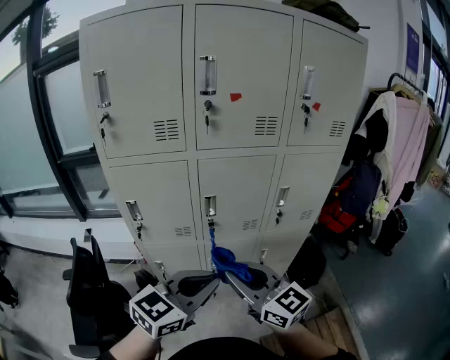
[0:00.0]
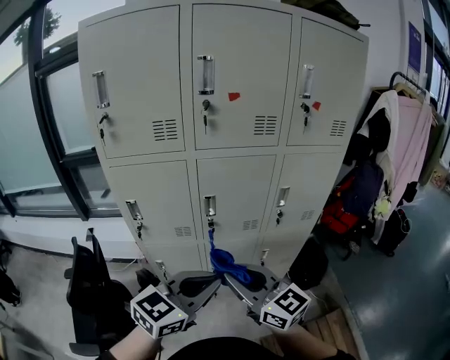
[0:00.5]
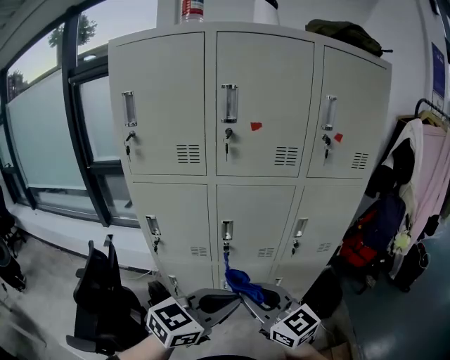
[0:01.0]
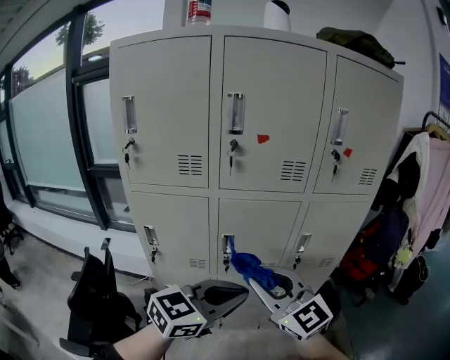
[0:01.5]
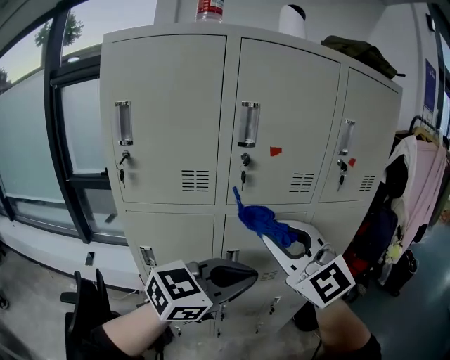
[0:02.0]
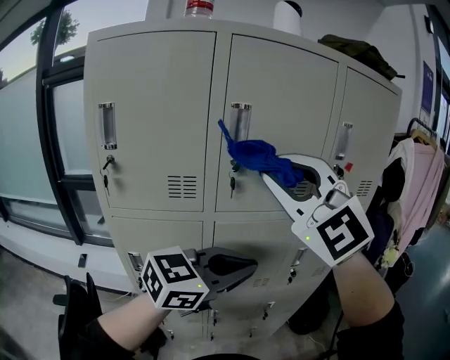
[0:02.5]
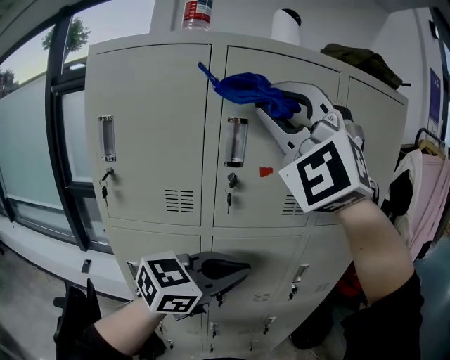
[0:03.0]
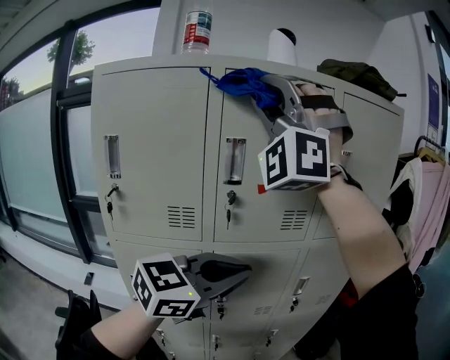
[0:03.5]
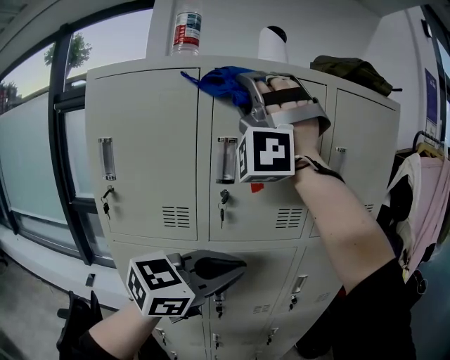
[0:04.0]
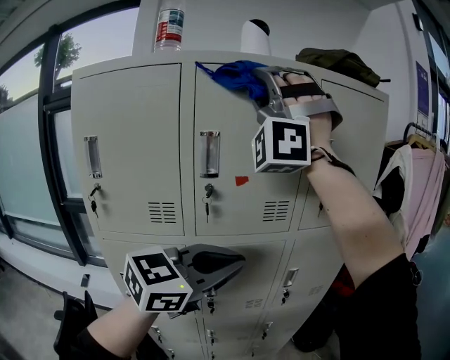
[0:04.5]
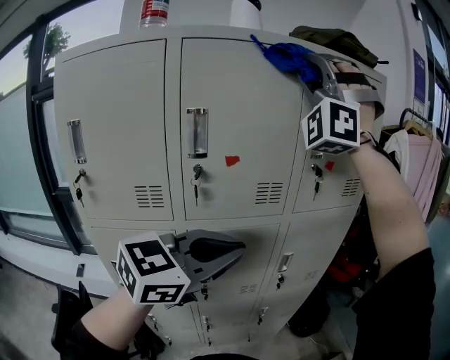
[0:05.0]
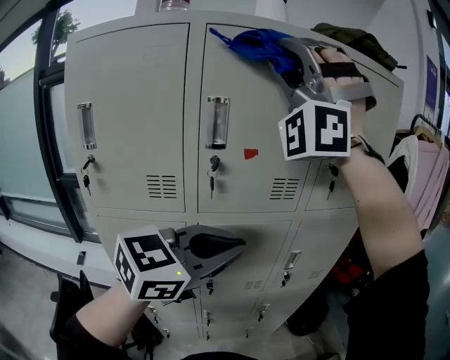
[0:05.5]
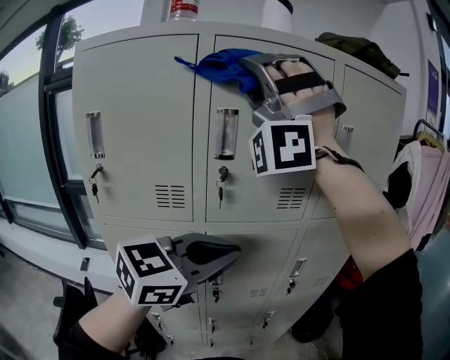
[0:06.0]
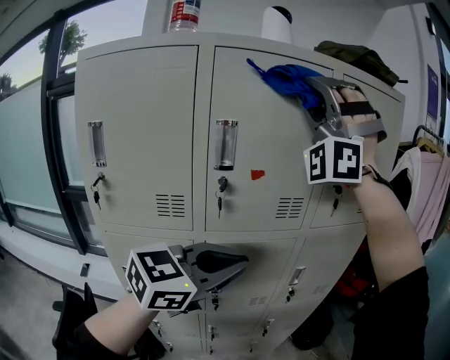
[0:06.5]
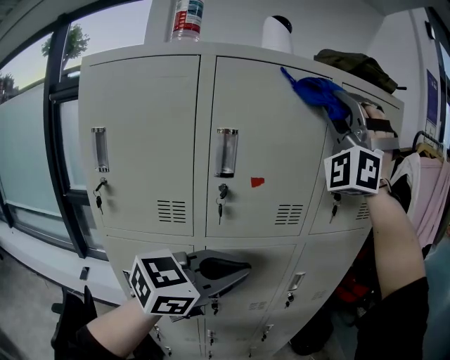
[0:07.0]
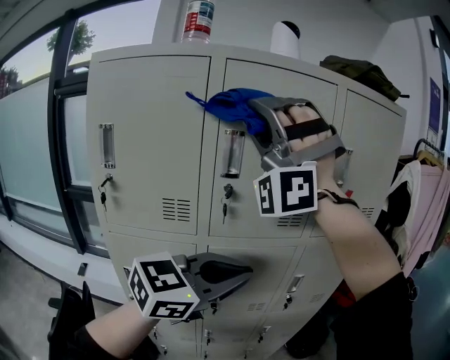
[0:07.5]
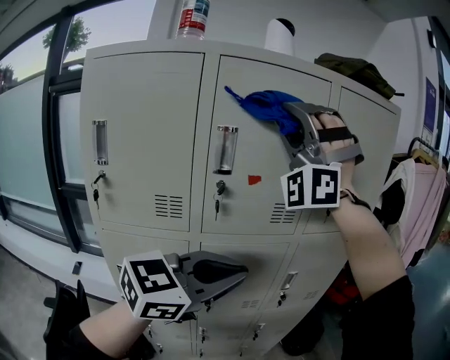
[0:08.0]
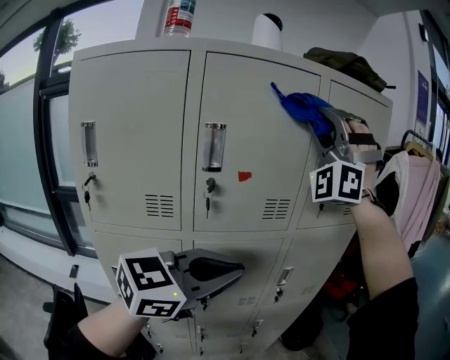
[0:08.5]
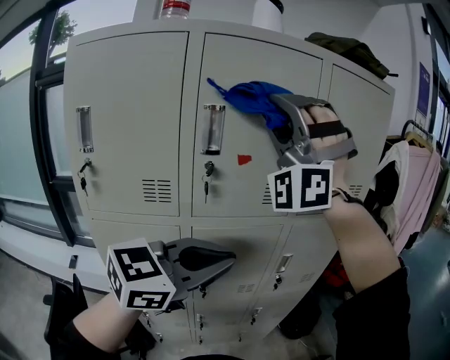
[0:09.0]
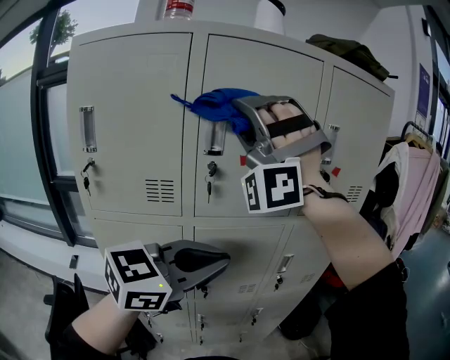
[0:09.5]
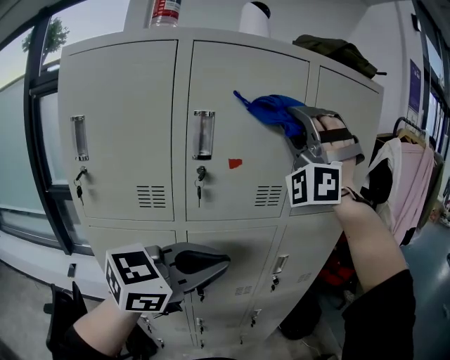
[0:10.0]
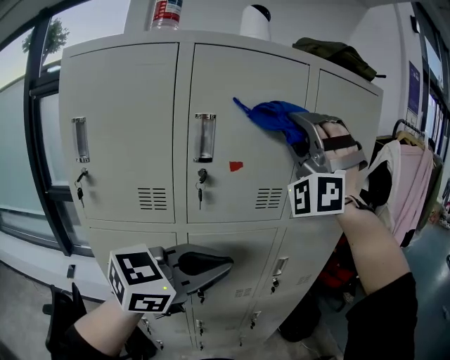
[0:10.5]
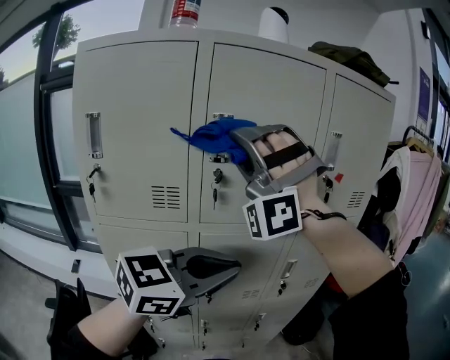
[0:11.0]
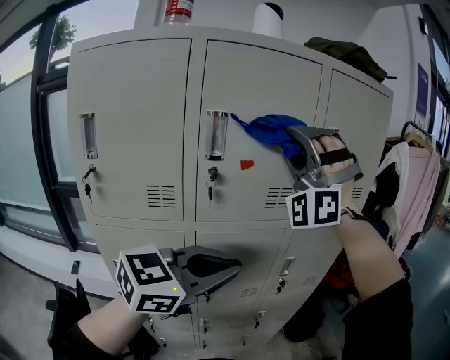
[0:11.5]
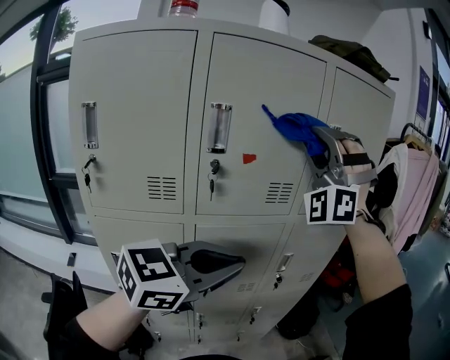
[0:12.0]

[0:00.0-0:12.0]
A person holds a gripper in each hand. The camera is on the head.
0:00.0 to 0:02.0: The left gripper travels upward by about 10 cm.
0:02.0 to 0:04.0: The left gripper is displaced upward by about 10 cm.

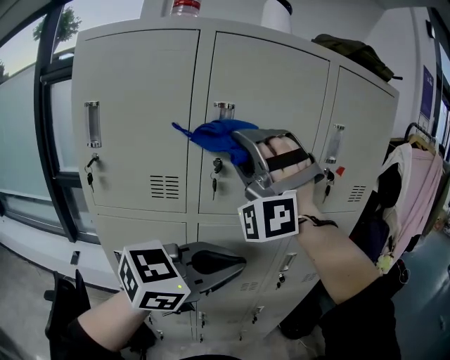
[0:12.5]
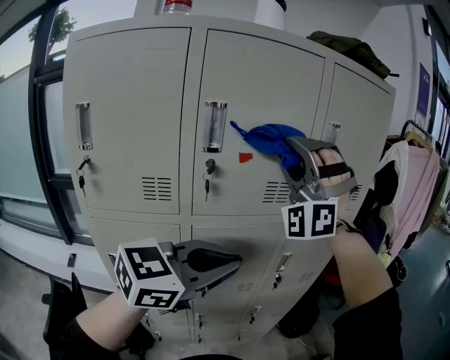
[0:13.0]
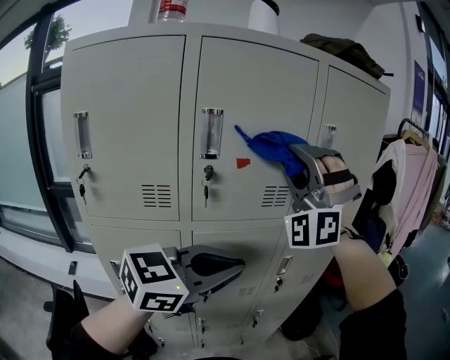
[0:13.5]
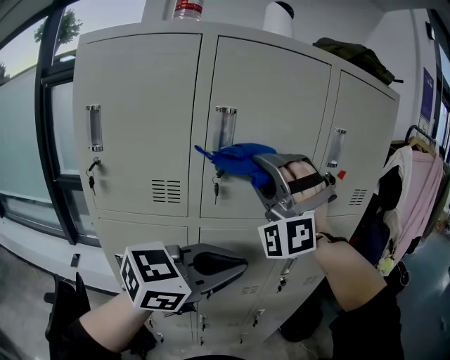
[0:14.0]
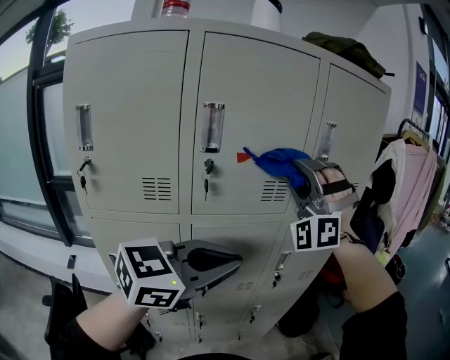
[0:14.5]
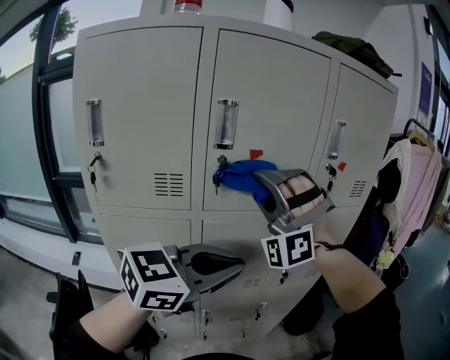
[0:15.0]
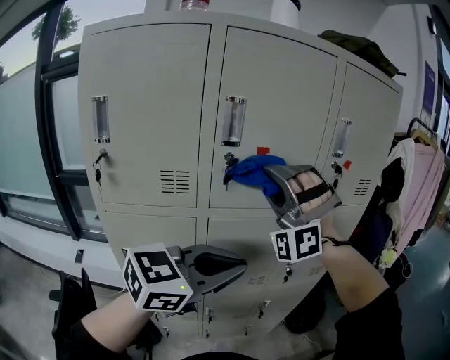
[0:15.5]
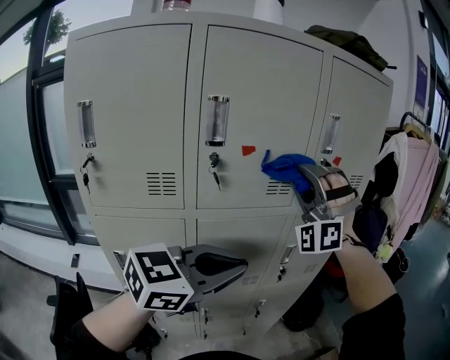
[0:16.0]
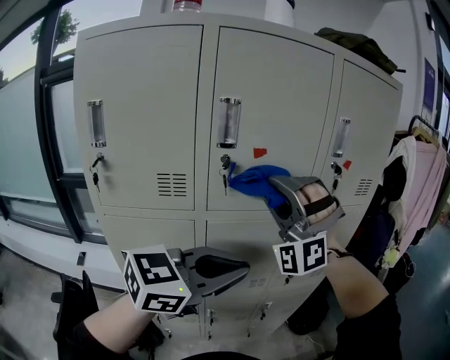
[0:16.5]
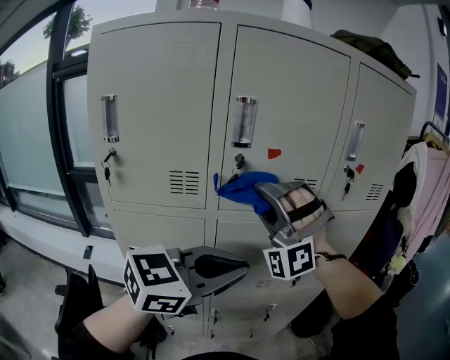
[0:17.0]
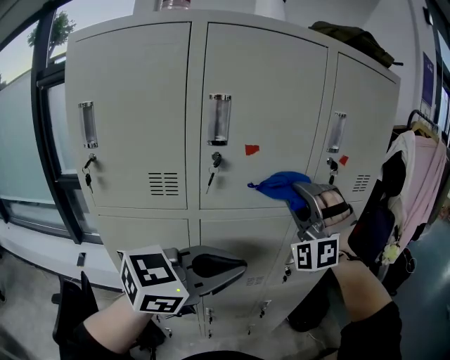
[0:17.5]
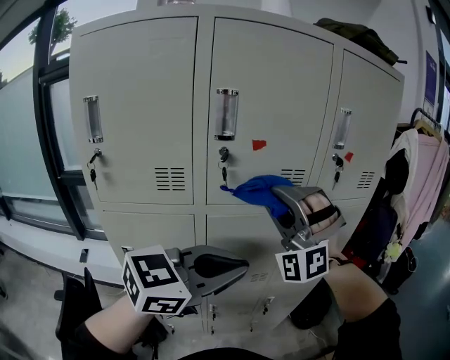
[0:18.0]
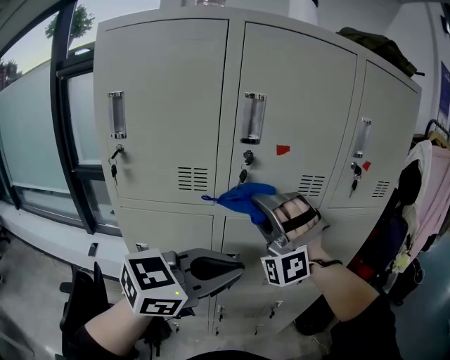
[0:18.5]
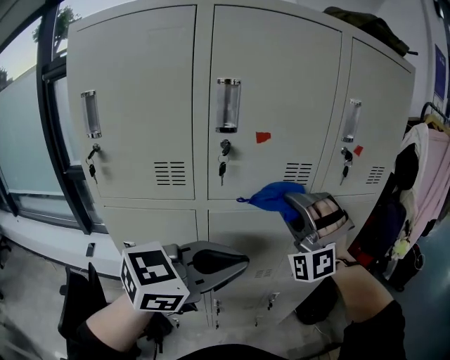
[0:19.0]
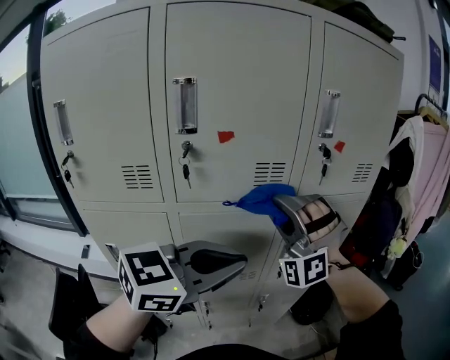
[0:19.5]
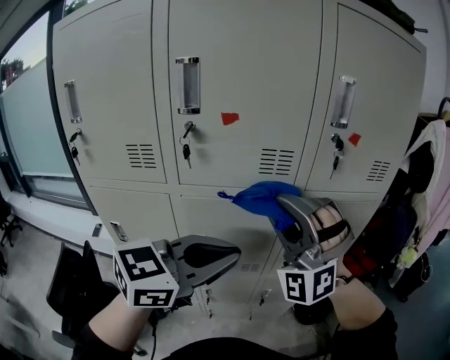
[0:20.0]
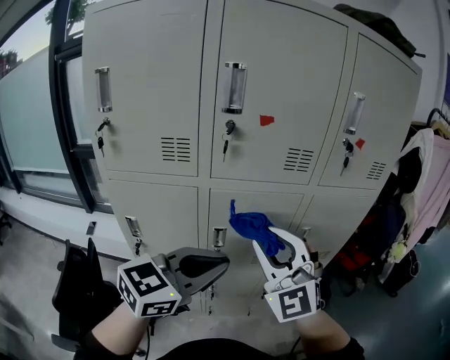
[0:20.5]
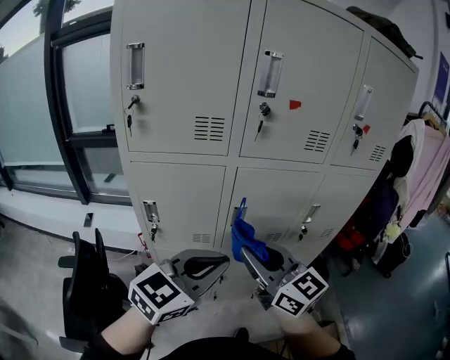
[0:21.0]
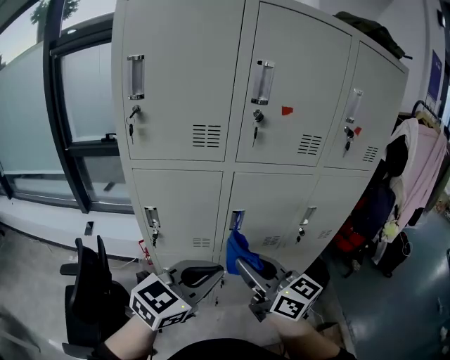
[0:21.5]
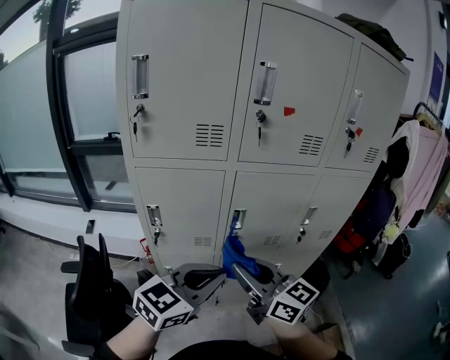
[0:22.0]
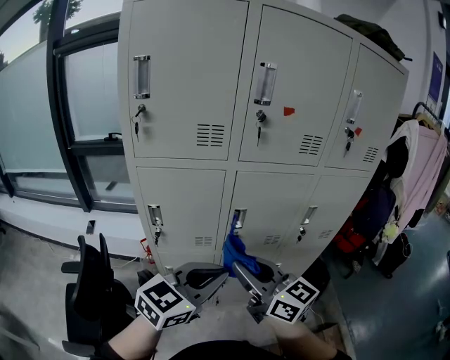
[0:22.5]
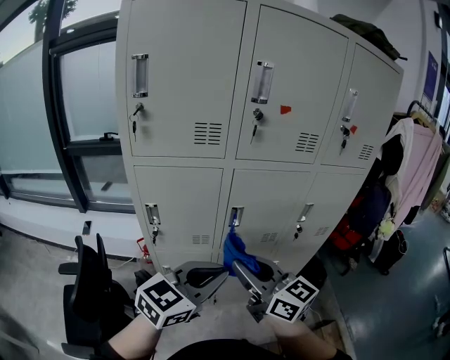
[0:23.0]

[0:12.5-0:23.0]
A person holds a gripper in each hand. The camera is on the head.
0:19.0 to 0:21.0: The left gripper ends up some 15 cm from where it was.

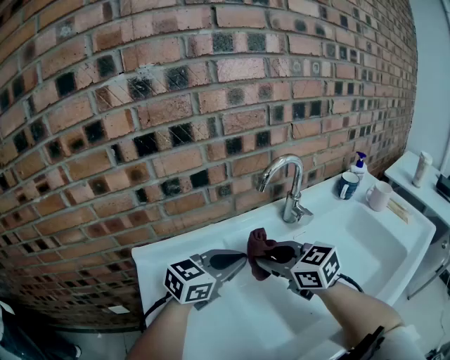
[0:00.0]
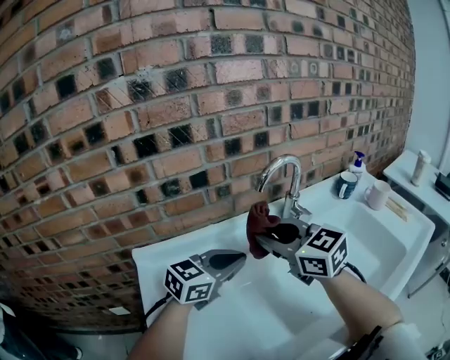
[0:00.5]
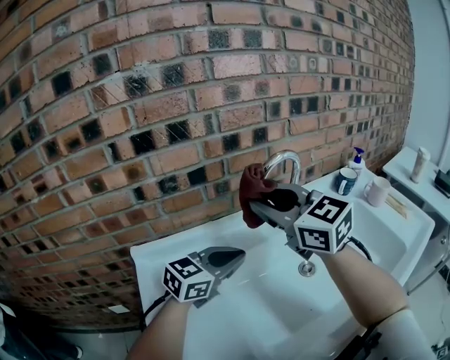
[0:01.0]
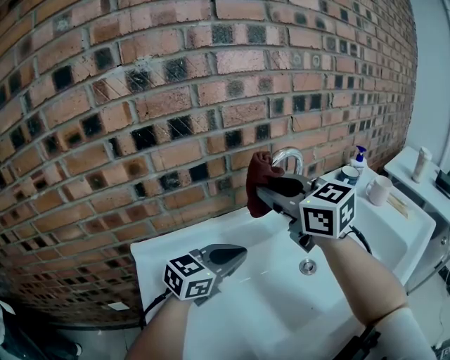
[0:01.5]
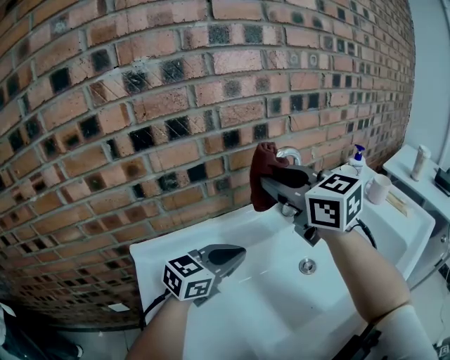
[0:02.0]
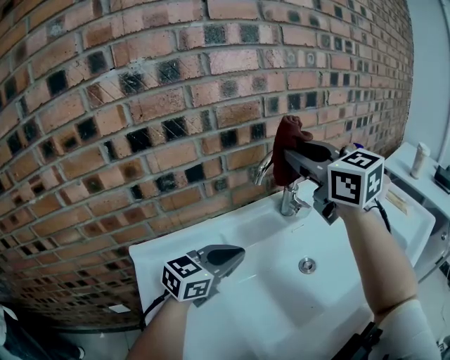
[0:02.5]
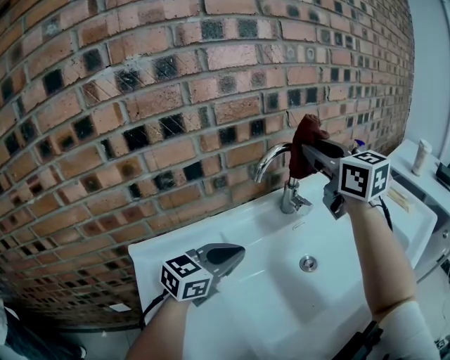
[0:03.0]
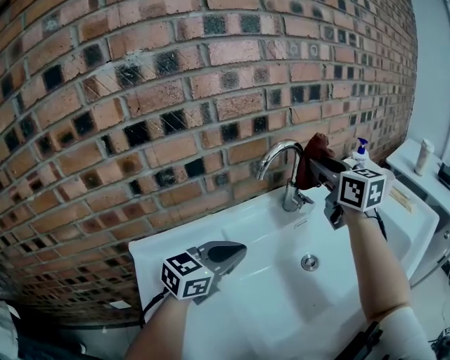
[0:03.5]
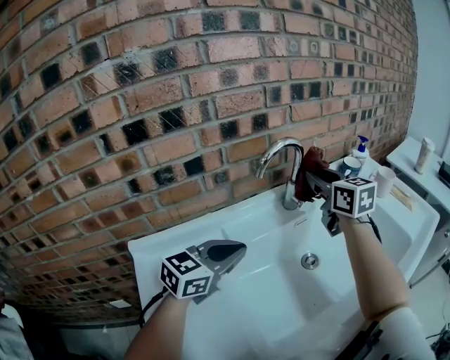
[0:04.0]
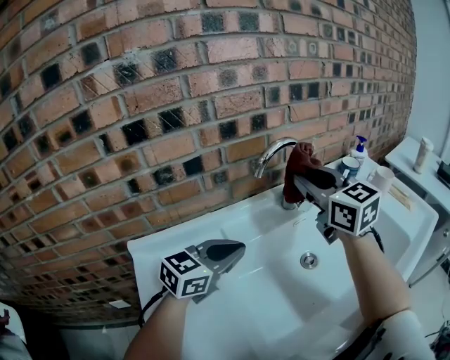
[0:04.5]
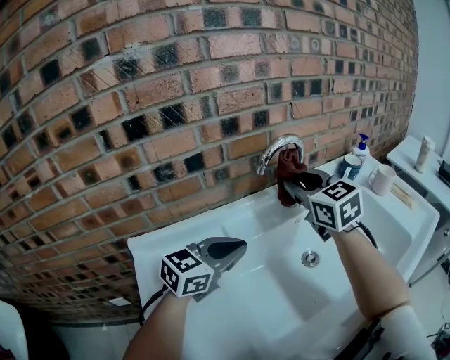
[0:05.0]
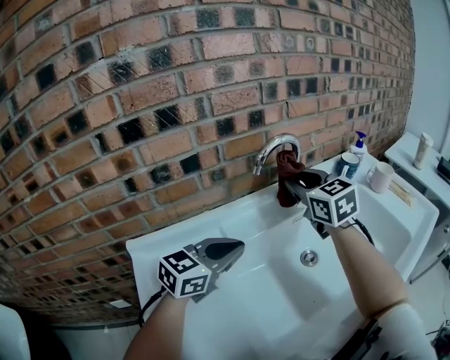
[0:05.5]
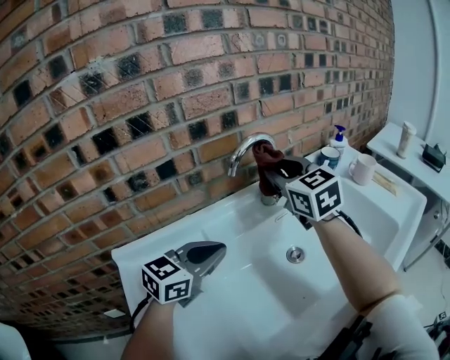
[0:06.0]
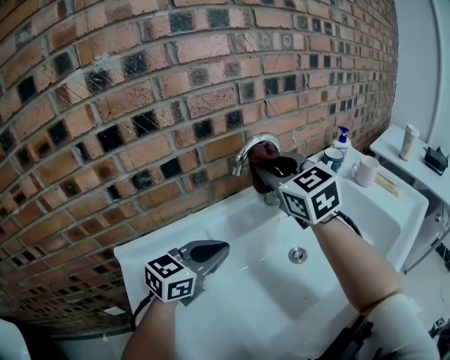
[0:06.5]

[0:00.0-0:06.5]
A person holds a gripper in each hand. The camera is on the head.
0:00.0 to 0:02.0: The right gripper moves upward, approximately 20 cm.
0:02.0 to 0:04.5: The right gripper moves up and down over some 15 cm, changing direction 2 times.
